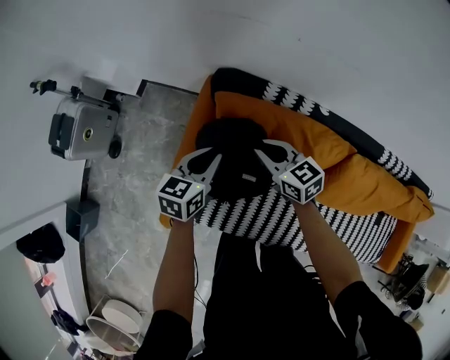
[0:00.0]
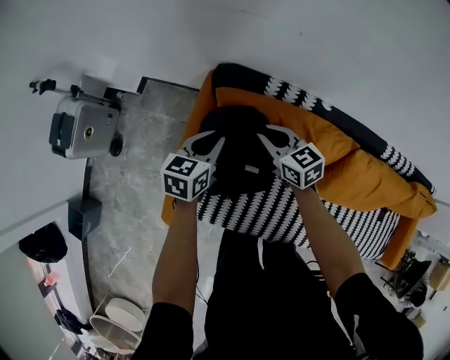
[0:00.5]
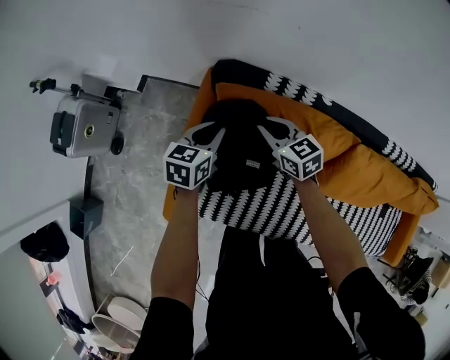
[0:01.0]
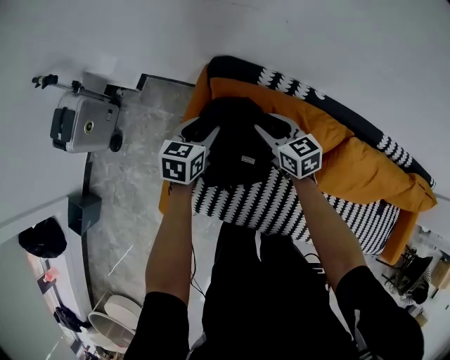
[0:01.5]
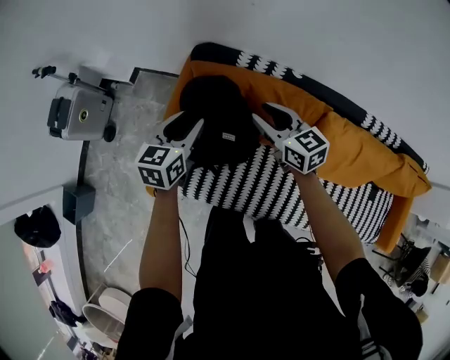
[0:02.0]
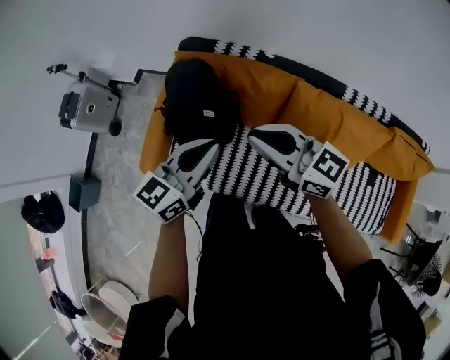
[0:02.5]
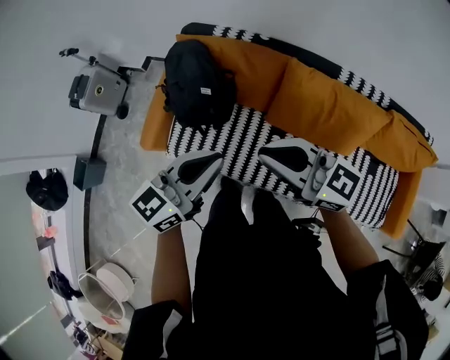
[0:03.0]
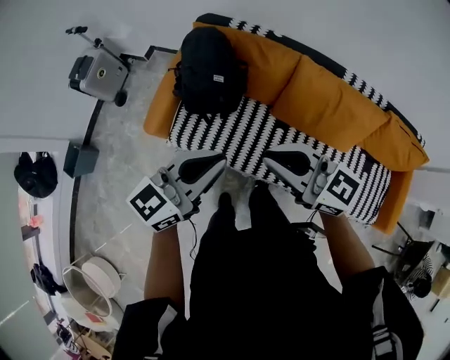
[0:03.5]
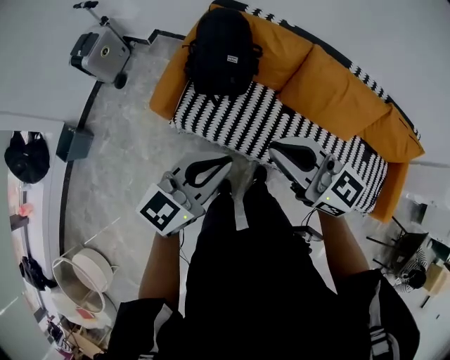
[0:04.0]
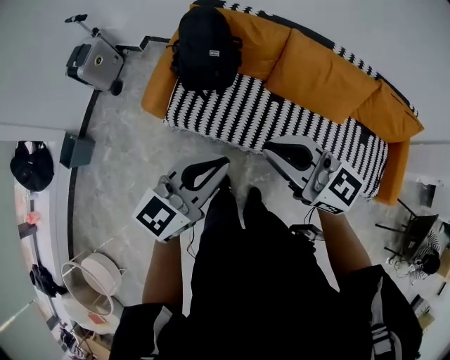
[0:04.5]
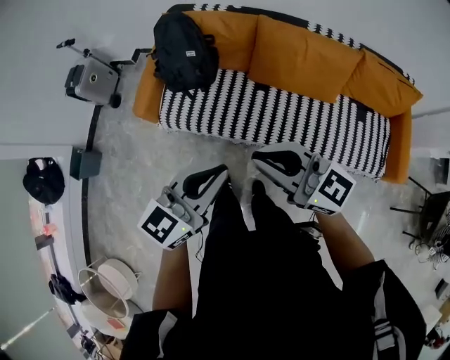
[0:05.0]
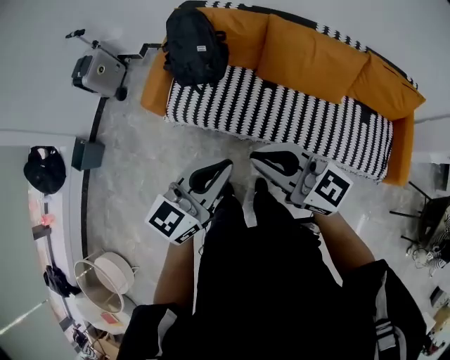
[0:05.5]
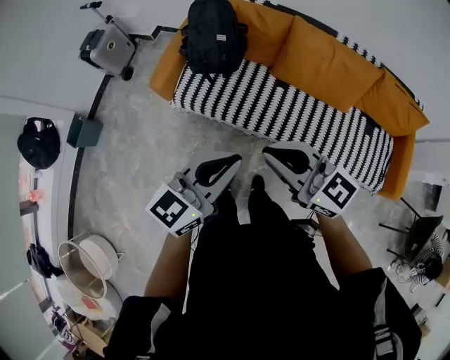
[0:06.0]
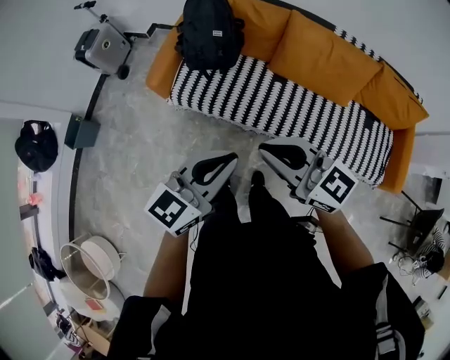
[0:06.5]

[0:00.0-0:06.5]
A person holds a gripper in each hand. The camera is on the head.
0:00.0 to 0:02.0: The left gripper shifts some 5 cm upward, and opens its fingers. Meanwhile the right gripper travels to the right and upward by about 10 cm, and opens up.
0:02.0 to 0:04.5: The pair of grippers is taken backward, about 50 cm. The right gripper moves upward, approximately 20 cm, changes its angle by about 30 degrees, and closes its fingers; the left gripper changes its angle by some 30 degrees, and closes.
0:04.5 to 0:06.5: The grippers both shift backward by some 10 cm.

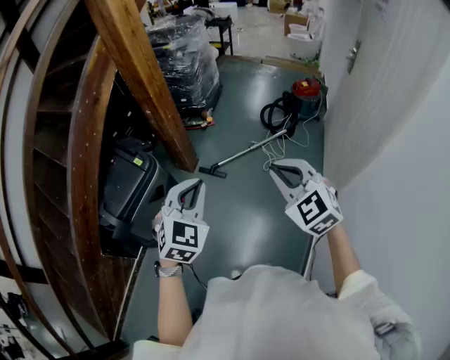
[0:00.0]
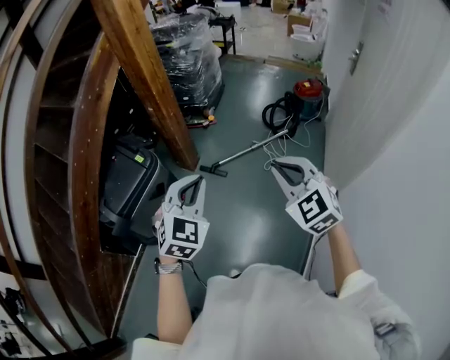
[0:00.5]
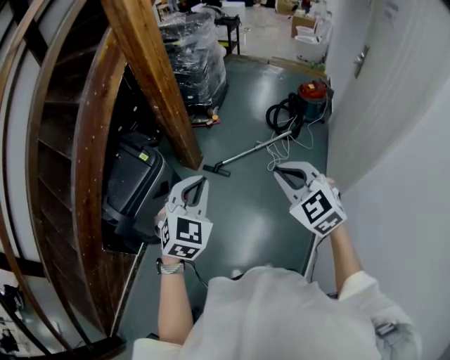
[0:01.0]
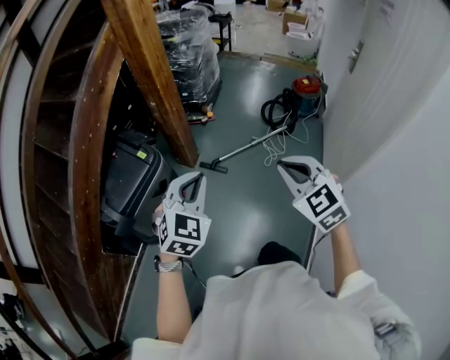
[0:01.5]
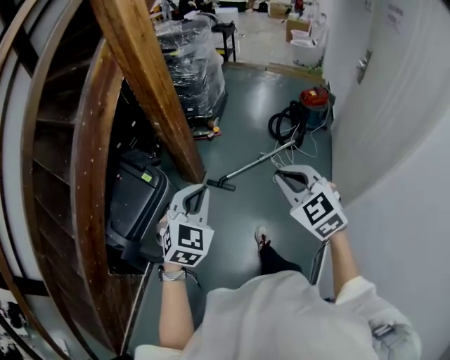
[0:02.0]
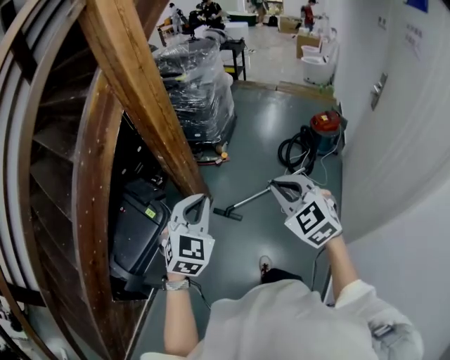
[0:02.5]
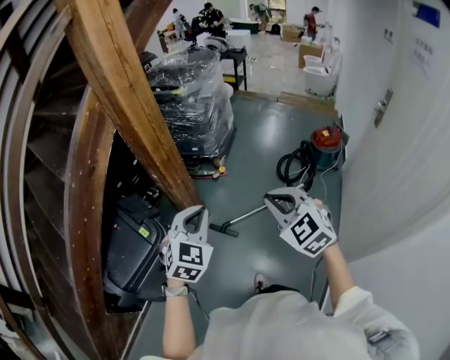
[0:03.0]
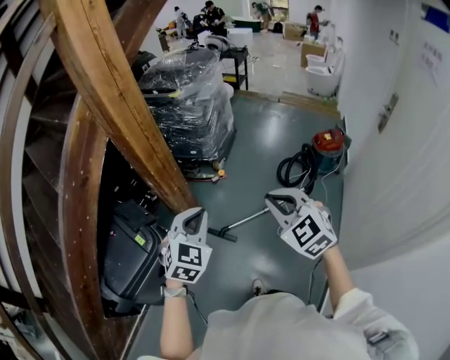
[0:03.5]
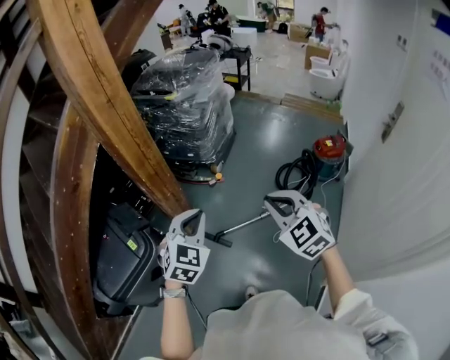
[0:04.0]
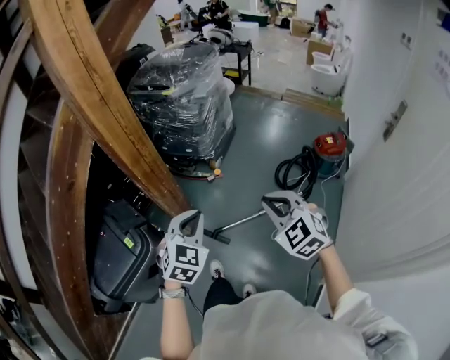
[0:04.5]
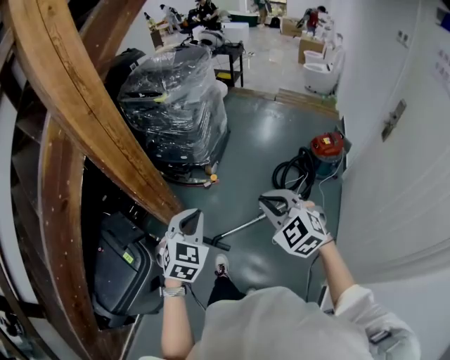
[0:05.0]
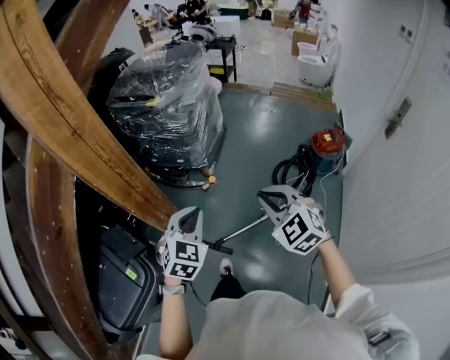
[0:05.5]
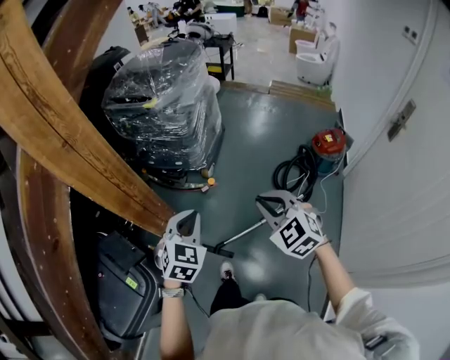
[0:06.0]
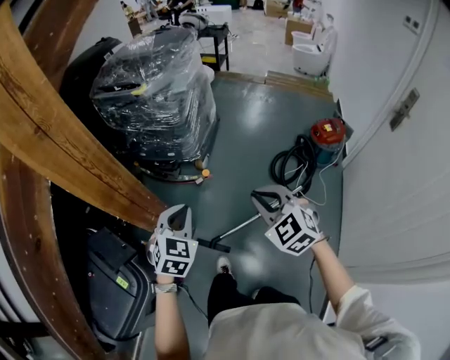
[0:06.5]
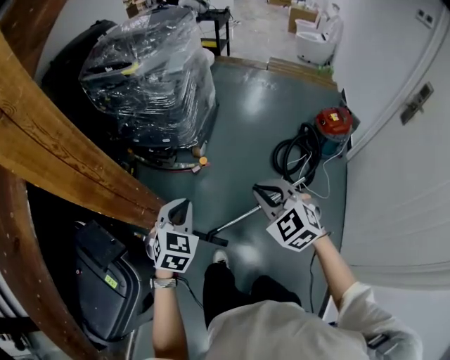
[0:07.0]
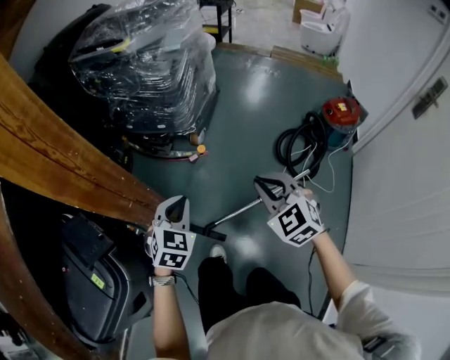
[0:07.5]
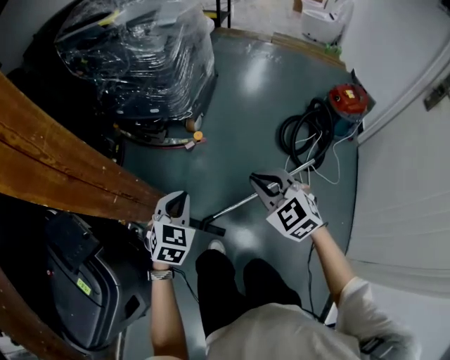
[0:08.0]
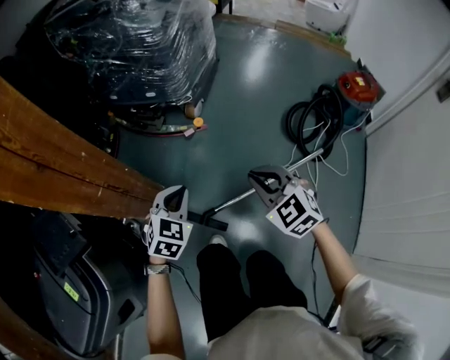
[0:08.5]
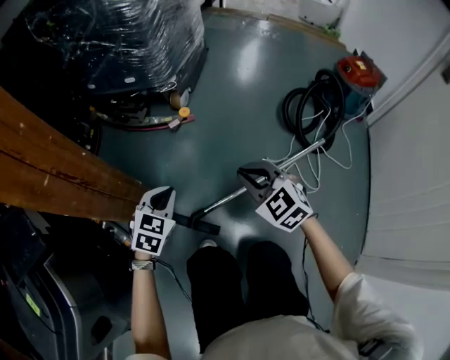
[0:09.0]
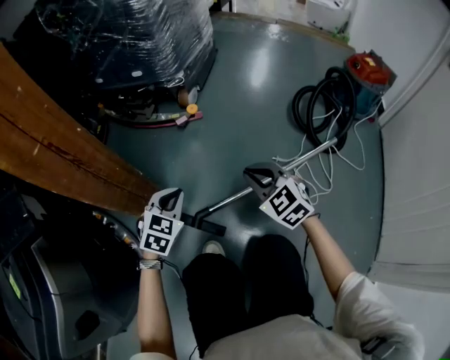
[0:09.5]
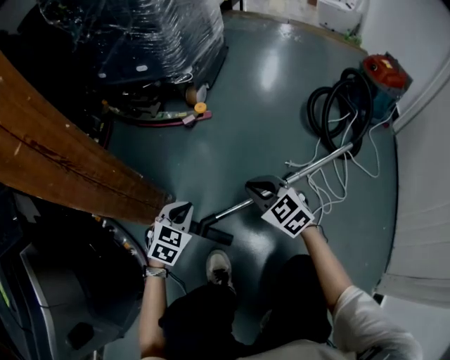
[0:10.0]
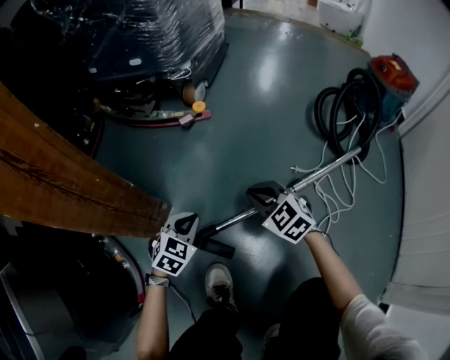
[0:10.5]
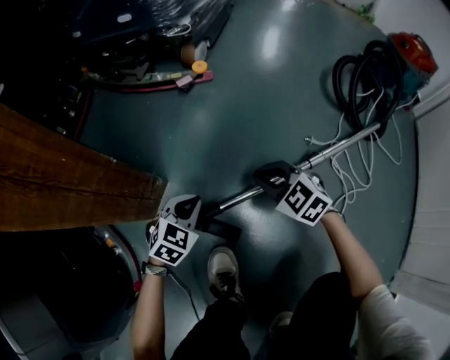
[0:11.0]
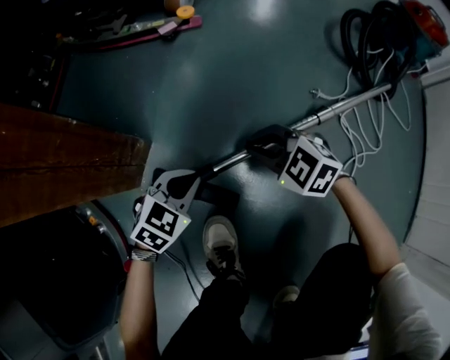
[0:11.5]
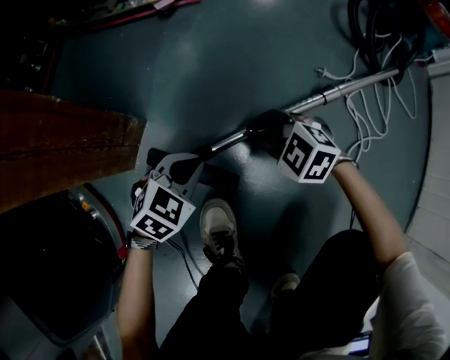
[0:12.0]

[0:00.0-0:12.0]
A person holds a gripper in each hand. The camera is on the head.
0:00.0 to 0:02.0: Both grippers move forward and to the left, roughly 10 cm.
0:02.0 to 0:04.0: The two grippers go approximately 30 cm forward.
0:04.0 to 0:06.0: Both grippers travel together forward, some 20 cm.
0:06.0 to 0:08.0: The grippers both shift downward by about 35 cm.
0:08.0 to 0:10.0: Both grippers move downward, some 40 cm.
0:10.0 to 0:12.0: The two grippers go roughly 20 cm downward. The left gripper changes its angle by roughly 20 degrees; the right gripper swivels some 30 degrees.

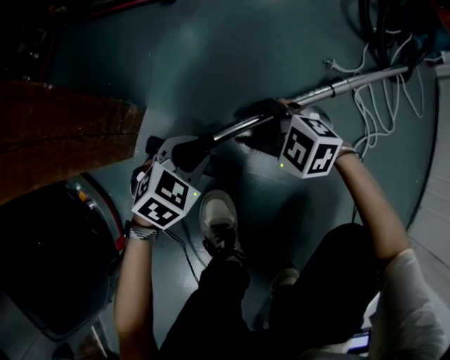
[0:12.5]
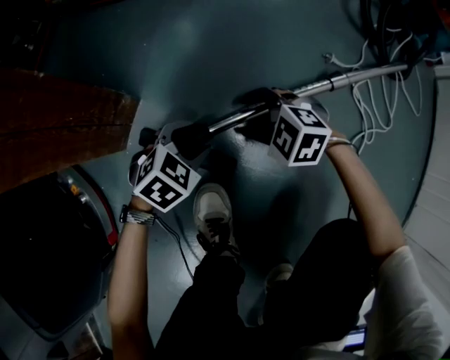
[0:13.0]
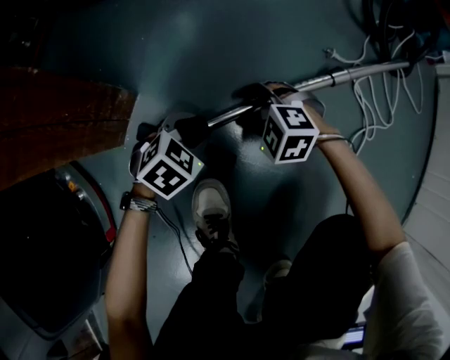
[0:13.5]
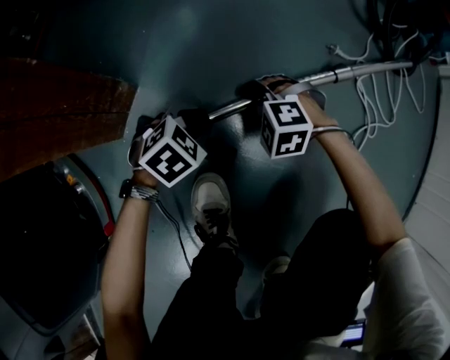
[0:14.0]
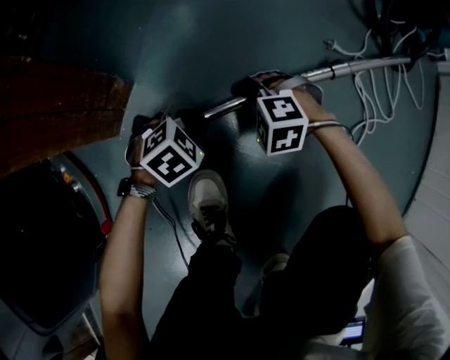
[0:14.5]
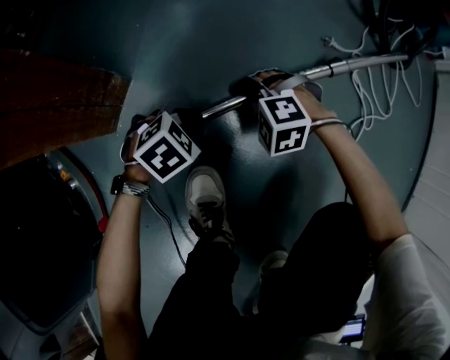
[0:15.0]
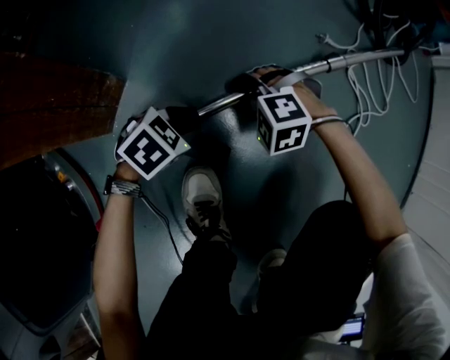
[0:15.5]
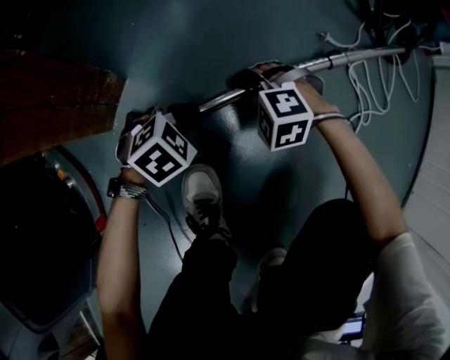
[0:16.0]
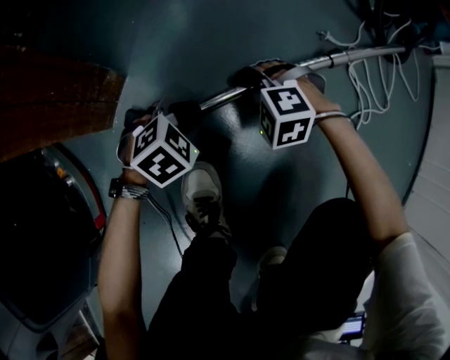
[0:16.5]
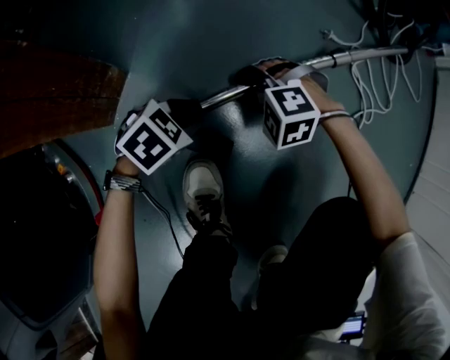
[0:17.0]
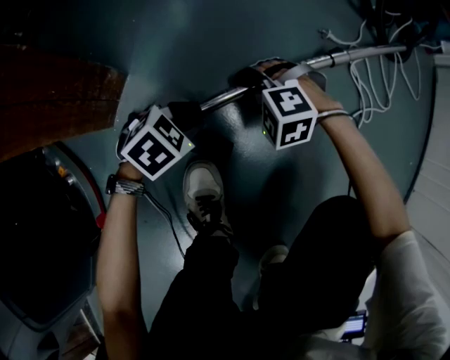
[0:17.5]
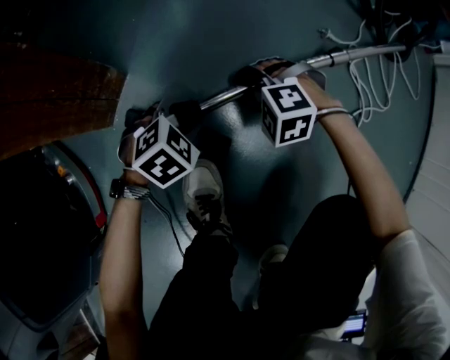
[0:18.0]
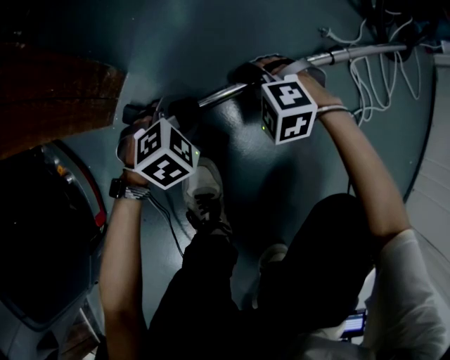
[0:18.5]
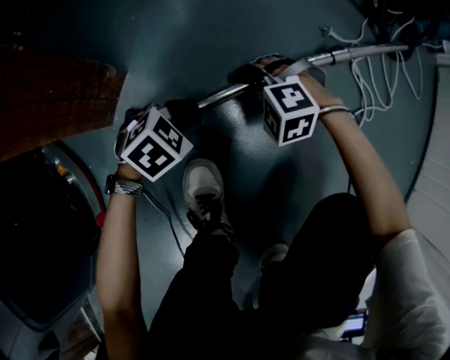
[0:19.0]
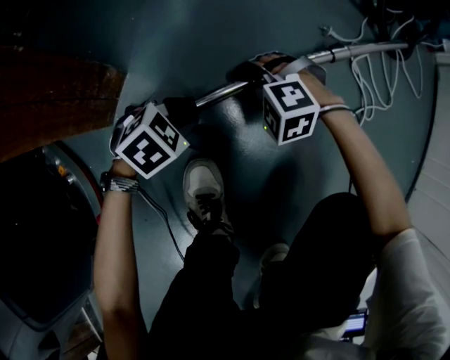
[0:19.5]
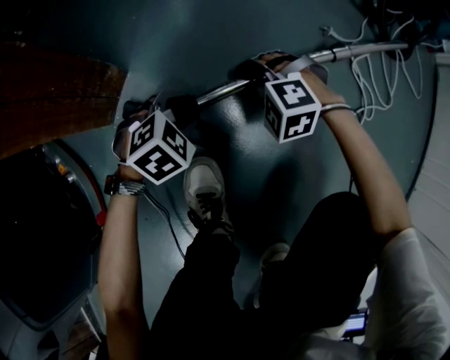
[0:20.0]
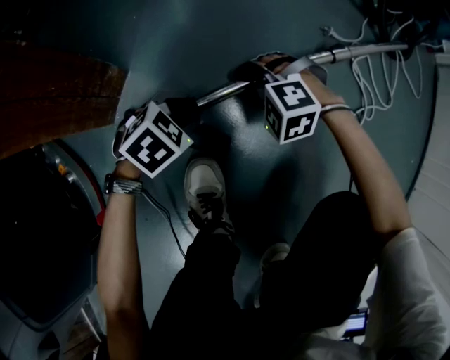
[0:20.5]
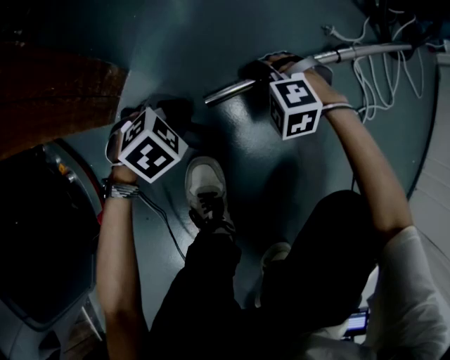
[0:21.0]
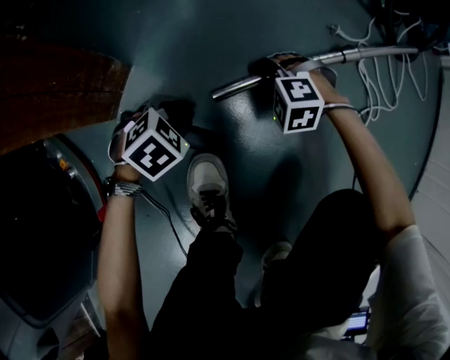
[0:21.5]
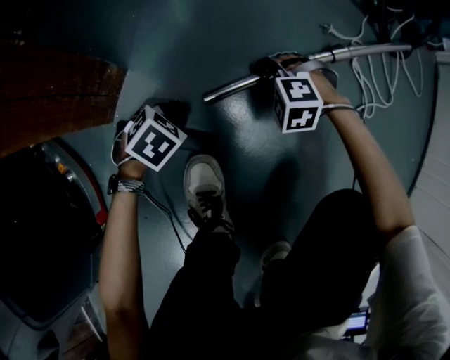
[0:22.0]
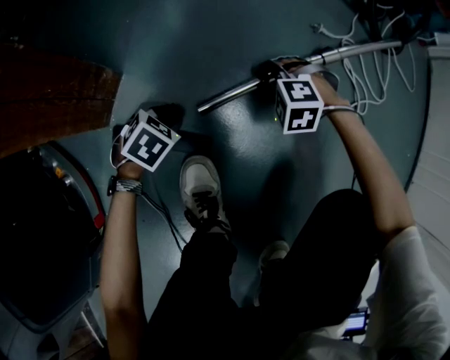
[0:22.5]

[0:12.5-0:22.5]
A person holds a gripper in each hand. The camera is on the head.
0:12.5 to 0:14.5: The grippers both shift downward by roughly 5 cm. The right gripper rotates approximately 30 degrees.
0:14.5 to 0:20.5: The grippers move only a little.
0:20.5 to 0:22.5: The right gripper heads to the right, covering some 5 cm; the left gripper shifts by approximately 5 cm.
